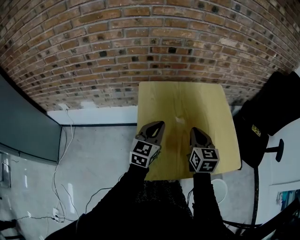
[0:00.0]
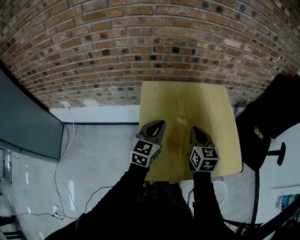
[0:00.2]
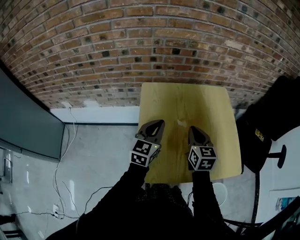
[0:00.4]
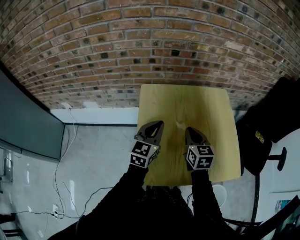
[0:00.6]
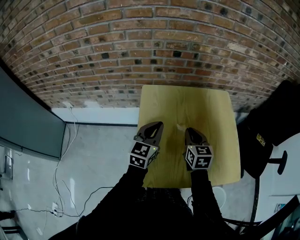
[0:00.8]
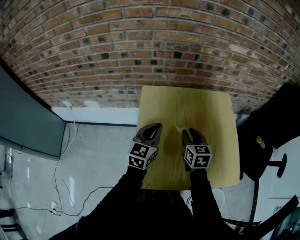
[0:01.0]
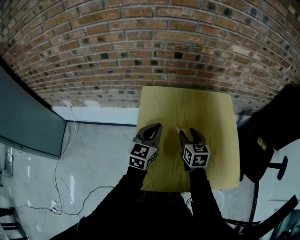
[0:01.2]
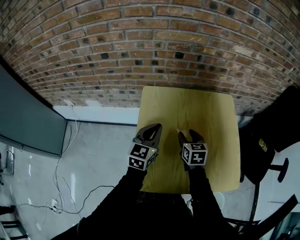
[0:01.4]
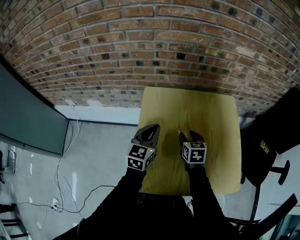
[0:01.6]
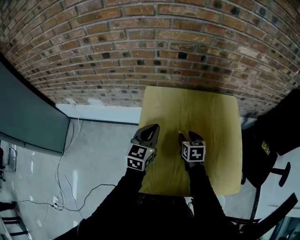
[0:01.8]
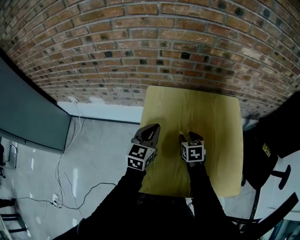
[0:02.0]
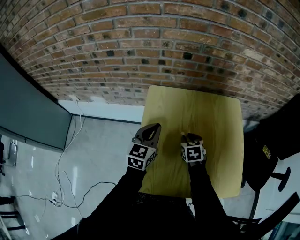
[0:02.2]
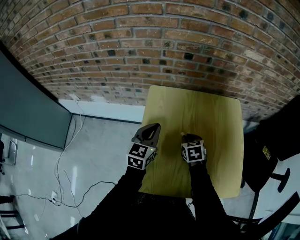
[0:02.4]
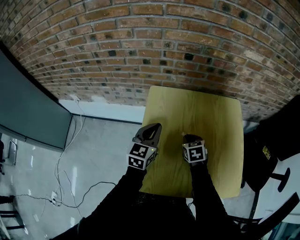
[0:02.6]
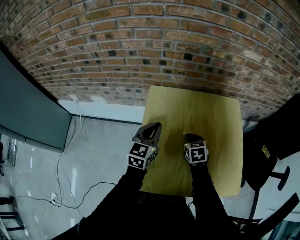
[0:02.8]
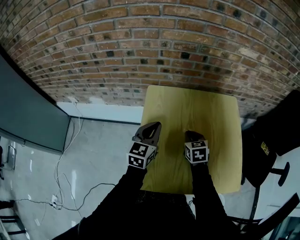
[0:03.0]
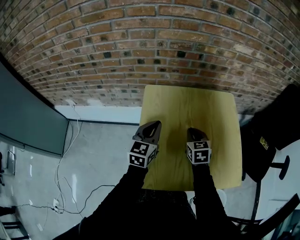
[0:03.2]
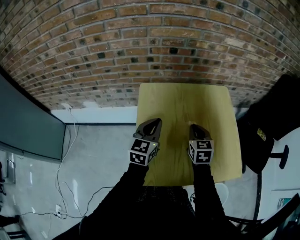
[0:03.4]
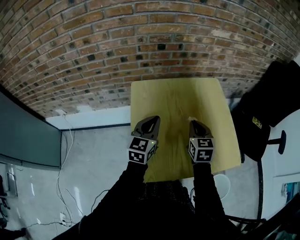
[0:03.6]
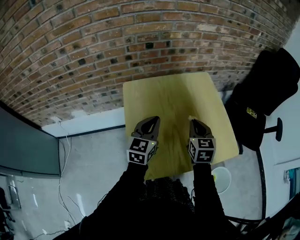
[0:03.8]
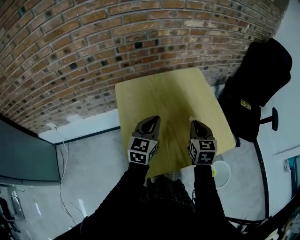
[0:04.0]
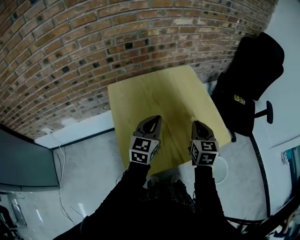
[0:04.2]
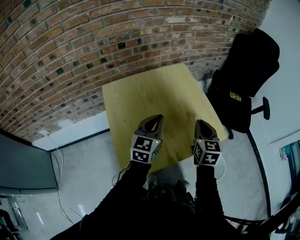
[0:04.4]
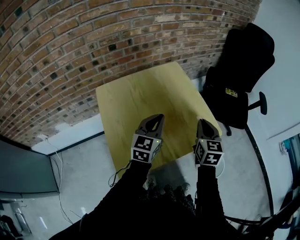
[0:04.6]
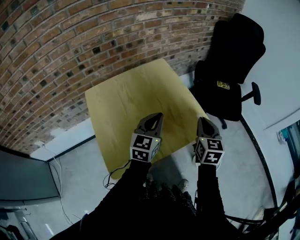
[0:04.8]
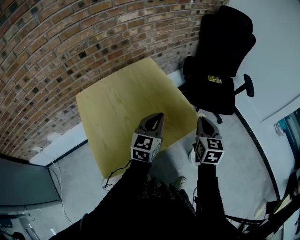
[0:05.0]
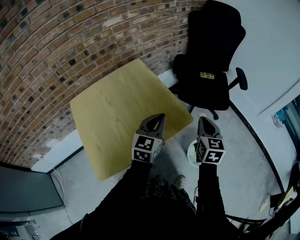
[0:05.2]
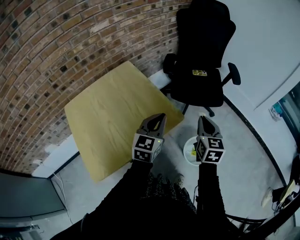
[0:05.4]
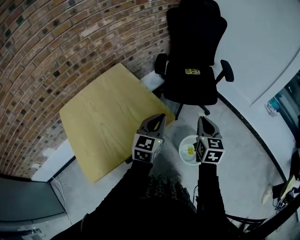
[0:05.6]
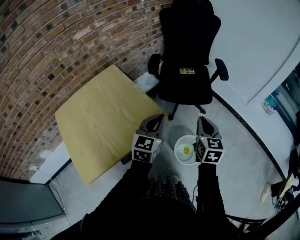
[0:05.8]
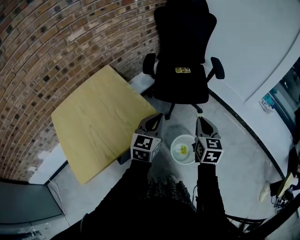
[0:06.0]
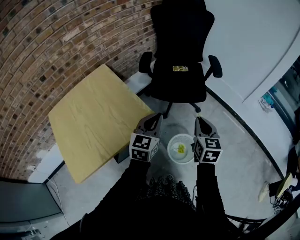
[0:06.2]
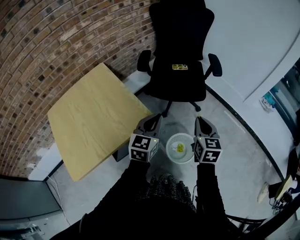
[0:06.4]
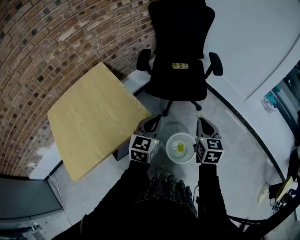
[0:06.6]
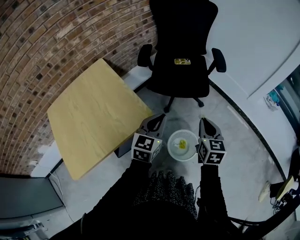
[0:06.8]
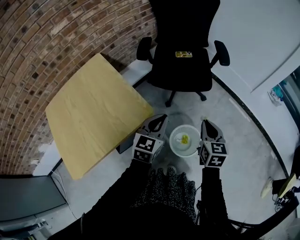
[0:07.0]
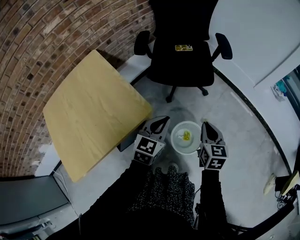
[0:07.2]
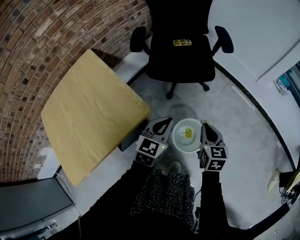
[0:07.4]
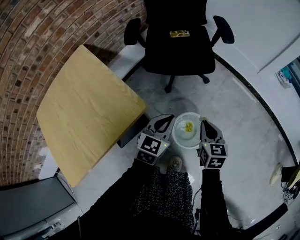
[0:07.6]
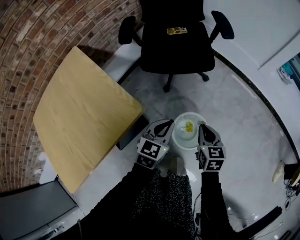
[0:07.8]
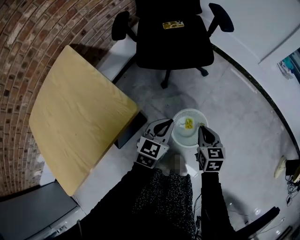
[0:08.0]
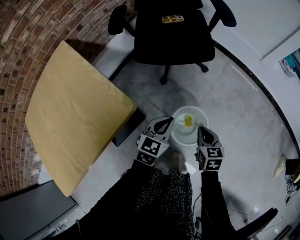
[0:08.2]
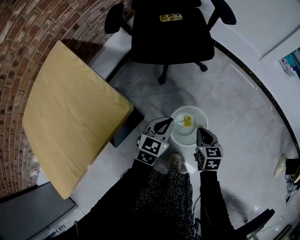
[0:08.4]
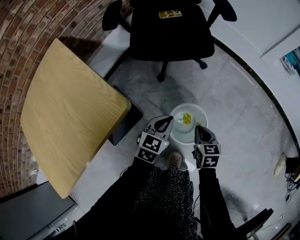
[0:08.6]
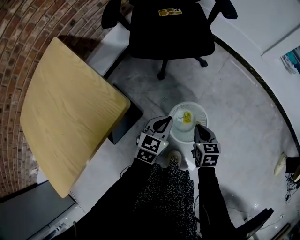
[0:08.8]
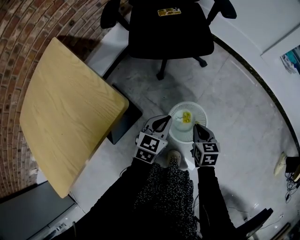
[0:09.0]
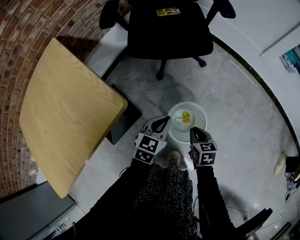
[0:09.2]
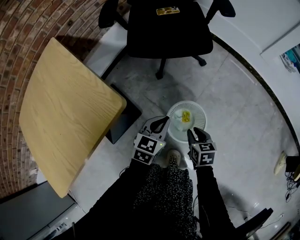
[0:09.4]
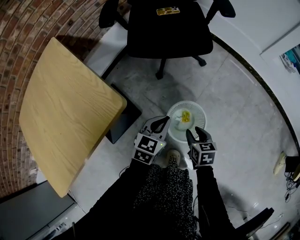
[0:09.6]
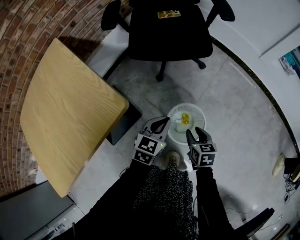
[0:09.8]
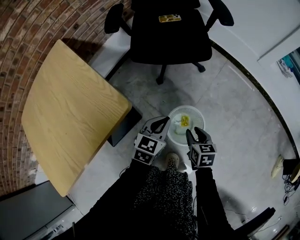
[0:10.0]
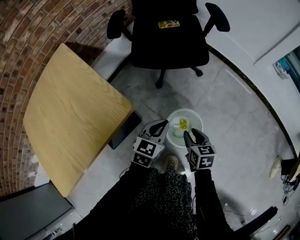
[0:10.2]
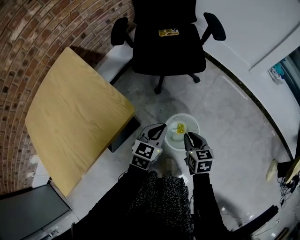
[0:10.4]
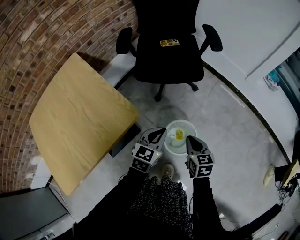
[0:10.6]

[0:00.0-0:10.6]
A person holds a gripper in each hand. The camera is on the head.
0:00.0 to 0:01.6: The left gripper goes some 5 cm forward. Meanwhile the right gripper is displaced downward and forward by approximately 15 cm, changes its angle by some 20 degrees, and opens up.
0:01.6 to 0:03.0: The right gripper closes its fingers.
0:03.0 to 0:04.6: The left gripper ends up roughly 25 cm from where it was, and turns by about 30 degrees. Meanwhile the right gripper shifts by about 30 cm, and changes its angle by about 40 degrees.
0:04.6 to 0:06.0: Both grippers move to the right, approximately 35 cm.
0:06.0 to 0:07.6: The left gripper is displaced downward and to the right by some 20 cm; the right gripper is displaced downward by about 20 cm.
0:07.6 to 0:09.0: The two grippers go some 15 cm downward.
0:09.0 to 0:10.6: The grippers both shift upward by approximately 15 cm. The right gripper opens, then closes once more.

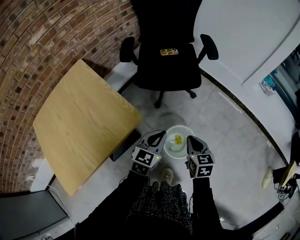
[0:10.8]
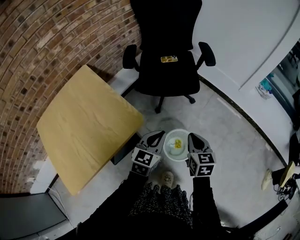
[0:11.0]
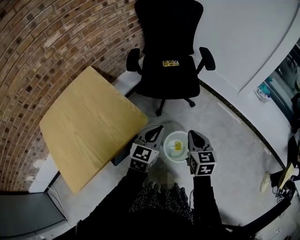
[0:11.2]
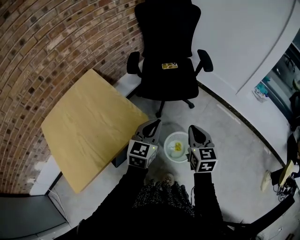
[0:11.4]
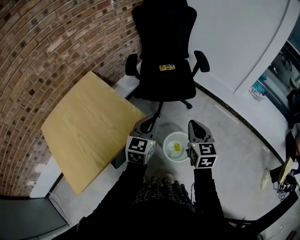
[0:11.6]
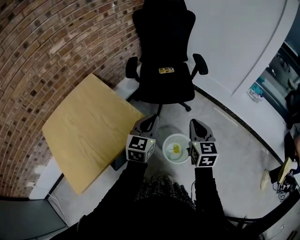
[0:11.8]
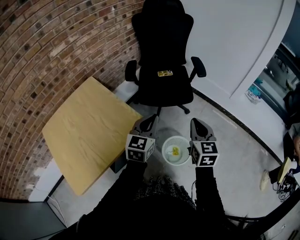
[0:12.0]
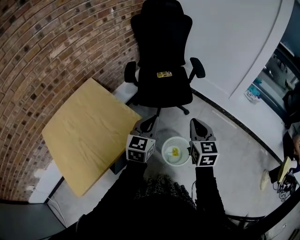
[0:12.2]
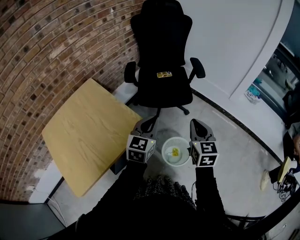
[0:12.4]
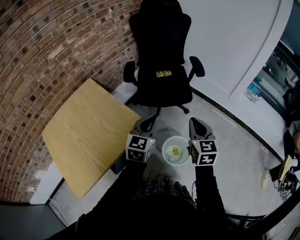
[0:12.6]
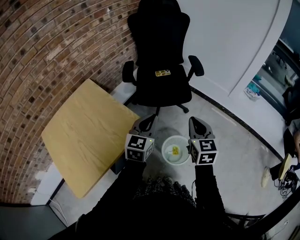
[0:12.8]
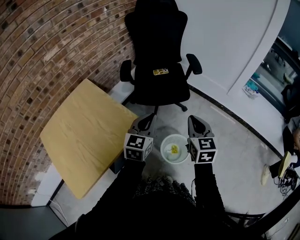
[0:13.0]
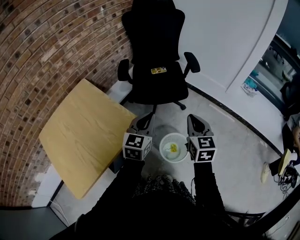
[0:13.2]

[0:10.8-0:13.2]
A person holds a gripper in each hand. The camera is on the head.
0:10.8 to 0:12.0: The grippers both shift upward by some 20 cm. The right gripper turns by some 20 degrees.
0:12.0 to 0:13.2: There are only small adjustments of the grippers.

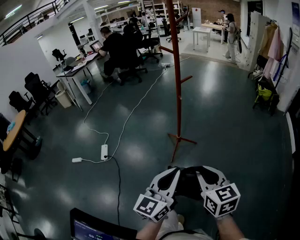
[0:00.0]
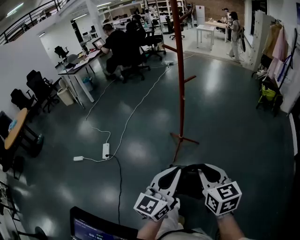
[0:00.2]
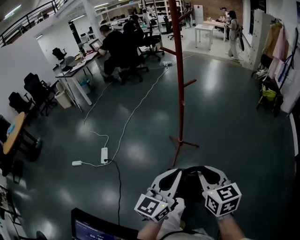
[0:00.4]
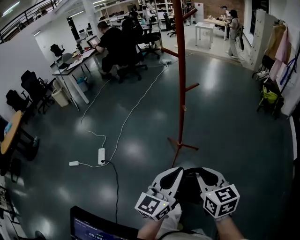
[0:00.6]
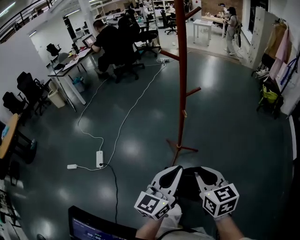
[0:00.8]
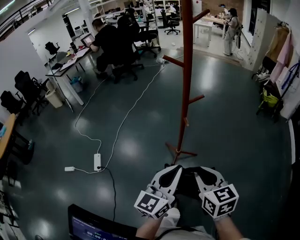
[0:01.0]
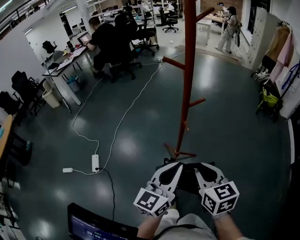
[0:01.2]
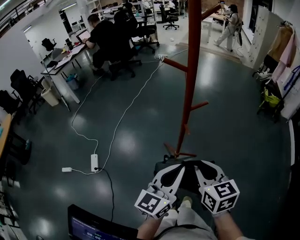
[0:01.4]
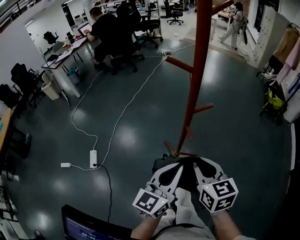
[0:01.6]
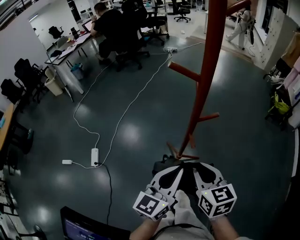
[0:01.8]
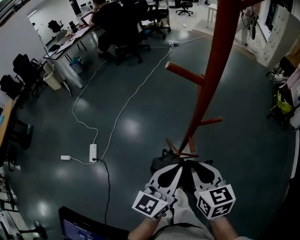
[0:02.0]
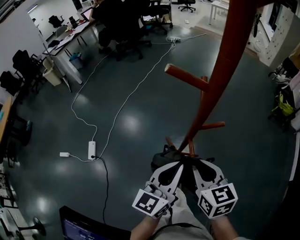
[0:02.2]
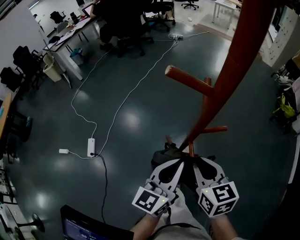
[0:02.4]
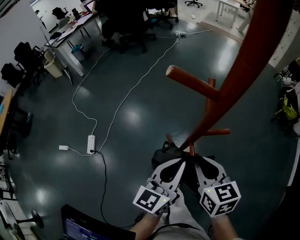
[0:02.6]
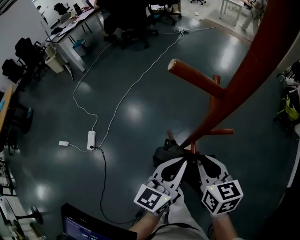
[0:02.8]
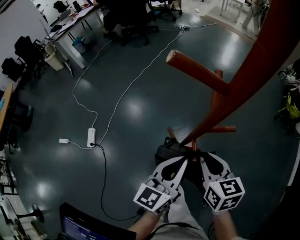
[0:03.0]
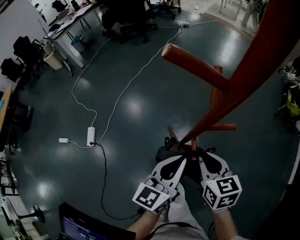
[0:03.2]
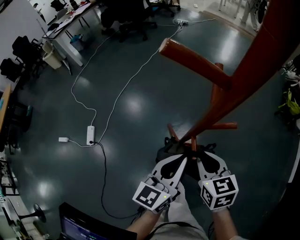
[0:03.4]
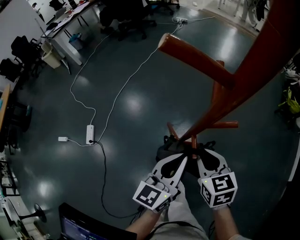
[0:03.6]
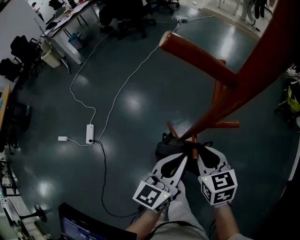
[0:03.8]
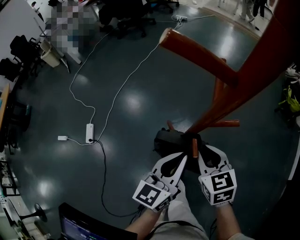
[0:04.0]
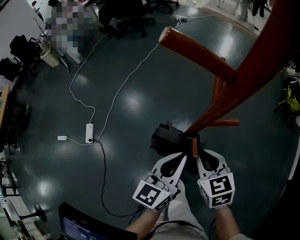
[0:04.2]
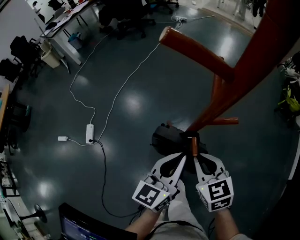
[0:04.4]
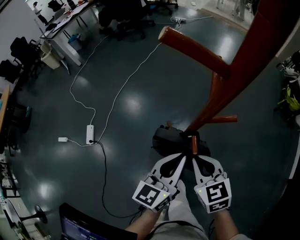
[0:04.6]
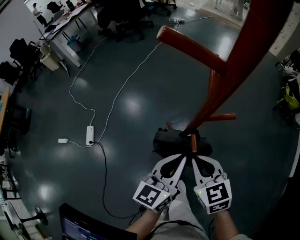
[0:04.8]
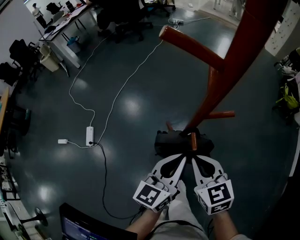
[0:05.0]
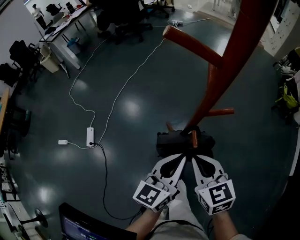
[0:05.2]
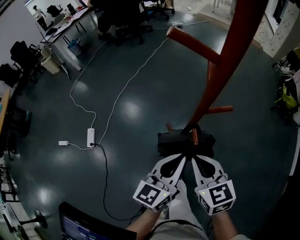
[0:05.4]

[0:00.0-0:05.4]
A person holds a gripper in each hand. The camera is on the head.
0:00.0 to 0:01.4: The two grippers go about 35 cm forward.
0:01.4 to 0:02.8: Both grippers move forward, roughly 20 cm.
0:02.8 to 0:04.0: The right gripper is displaced downward by about 5 cm.
0:04.0 to 0:05.4: Both grippers travel together backward, roughly 5 cm.

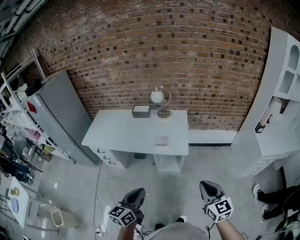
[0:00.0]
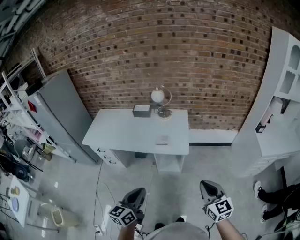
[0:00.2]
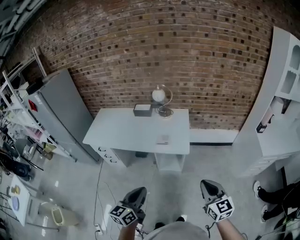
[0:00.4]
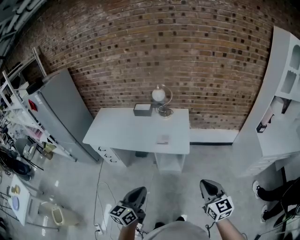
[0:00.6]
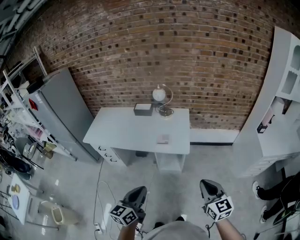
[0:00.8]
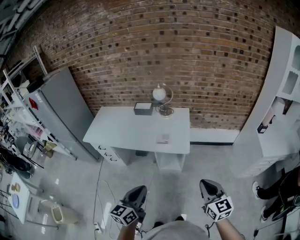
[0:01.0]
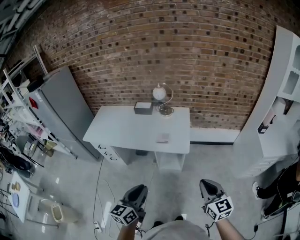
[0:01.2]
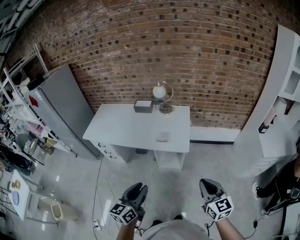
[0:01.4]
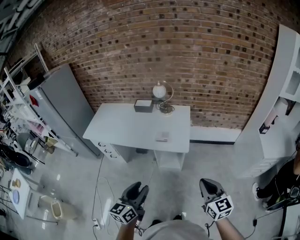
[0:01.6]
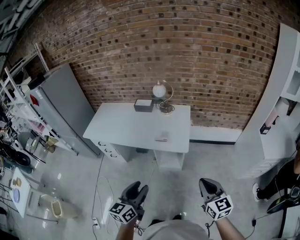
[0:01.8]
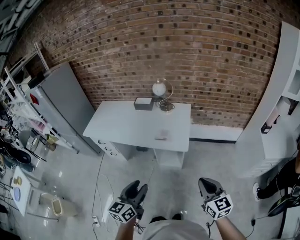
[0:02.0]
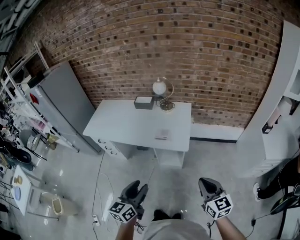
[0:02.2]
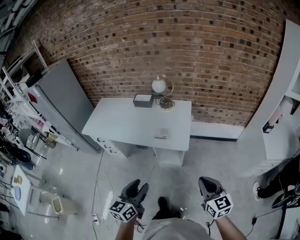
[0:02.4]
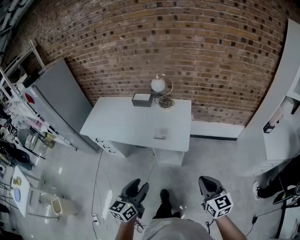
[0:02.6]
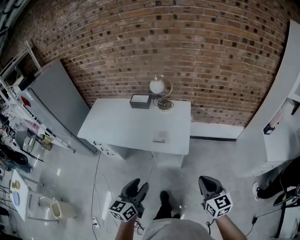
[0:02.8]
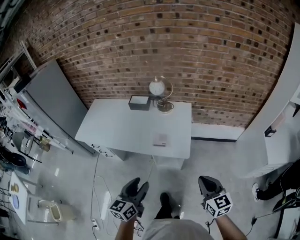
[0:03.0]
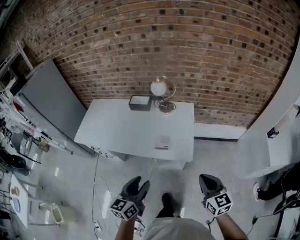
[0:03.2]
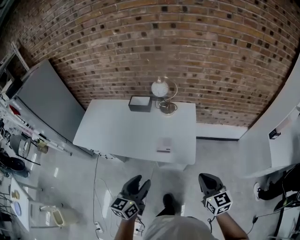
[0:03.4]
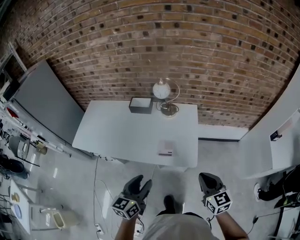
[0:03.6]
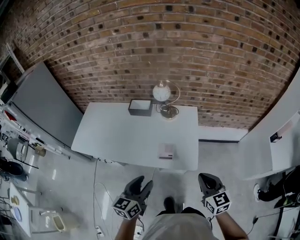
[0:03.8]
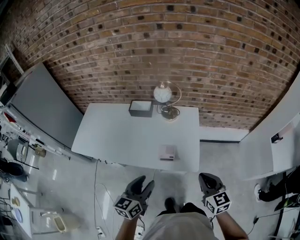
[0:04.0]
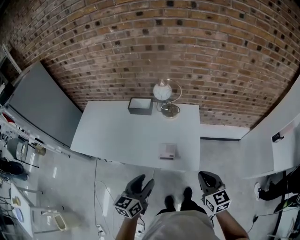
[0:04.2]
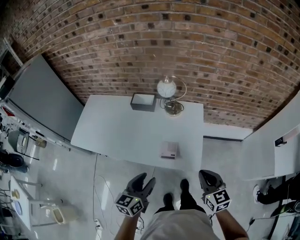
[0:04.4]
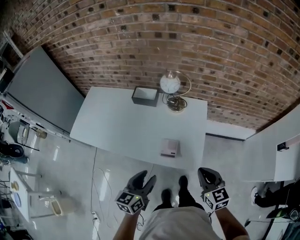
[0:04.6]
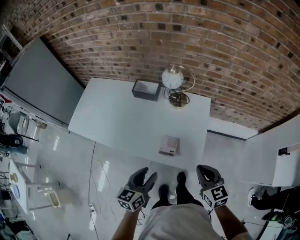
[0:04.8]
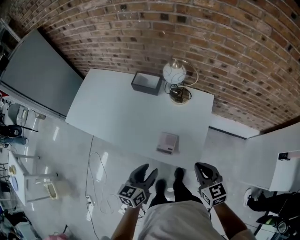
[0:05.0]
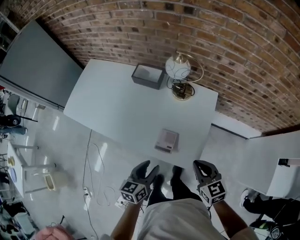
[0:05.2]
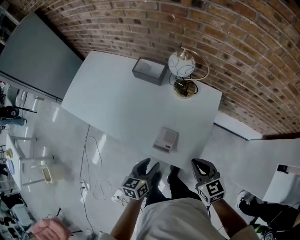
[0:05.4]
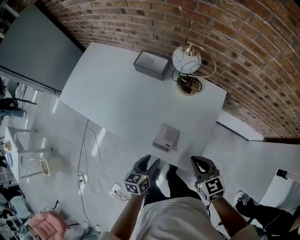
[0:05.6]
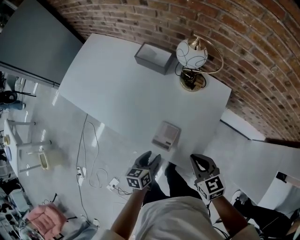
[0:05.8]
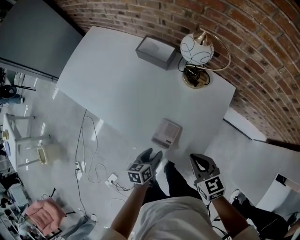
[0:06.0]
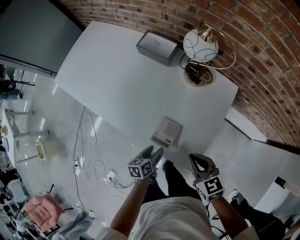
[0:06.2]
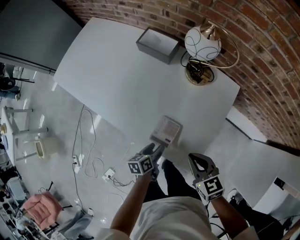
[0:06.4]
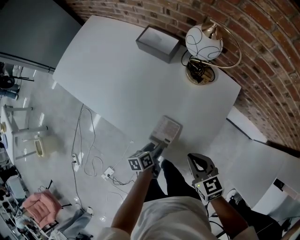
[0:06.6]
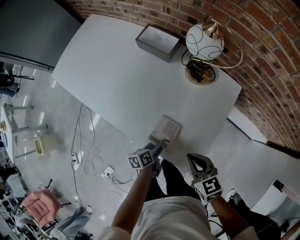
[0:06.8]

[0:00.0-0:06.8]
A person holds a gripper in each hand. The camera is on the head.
0:00.0 to 0:01.4: The left gripper opens its fingers.
0:01.4 to 0:02.8: Both grippers move forward, roughly 10 cm.
0:02.8 to 0:04.0: The left gripper goes about 20 cm forward. Meanwhile the right gripper moves forward and to the left, approximately 25 cm.
0:04.0 to 0:05.4: The right gripper heads forward and downward, covering approximately 20 cm, and turns by roughly 30 degrees; the left gripper heads downward, forward and to the right, covering roughly 25 cm, and rotates some 30 degrees.
0:05.4 to 0:06.8: The left gripper is displaced downward by roughly 20 cm, and turns by roughly 40 degrees. The right gripper travels downward by roughly 10 cm.
